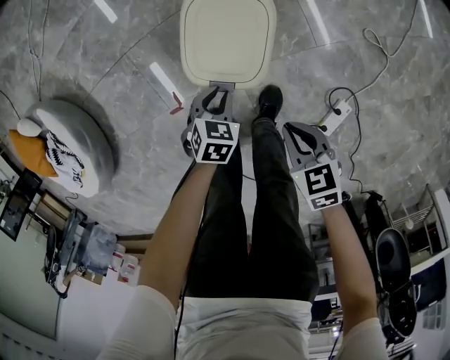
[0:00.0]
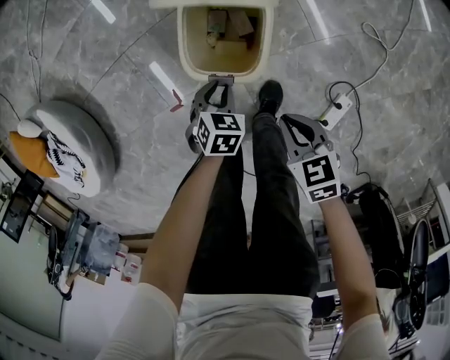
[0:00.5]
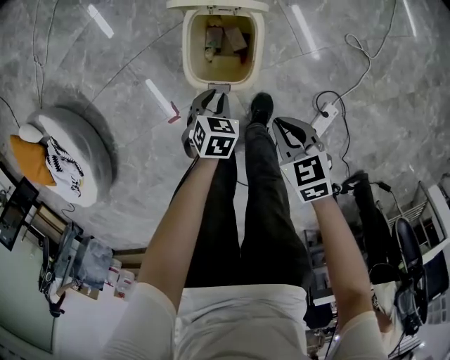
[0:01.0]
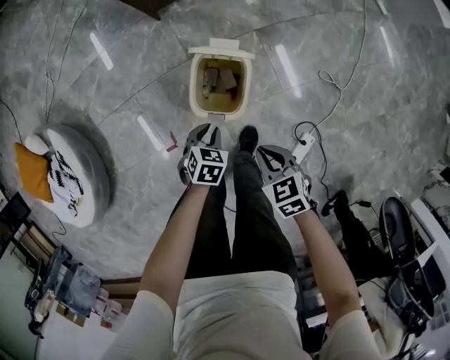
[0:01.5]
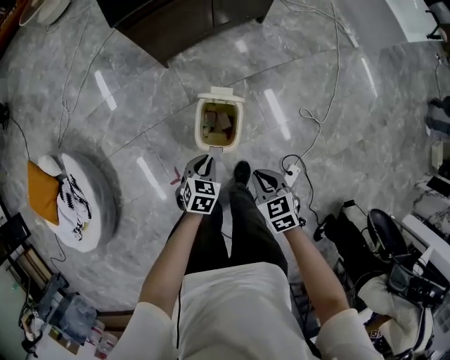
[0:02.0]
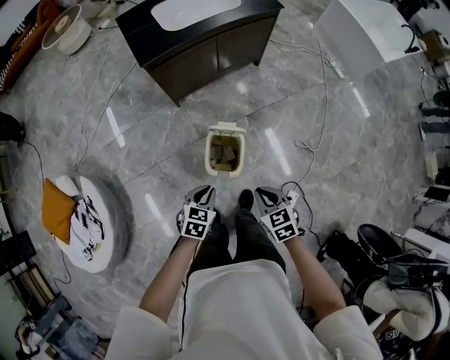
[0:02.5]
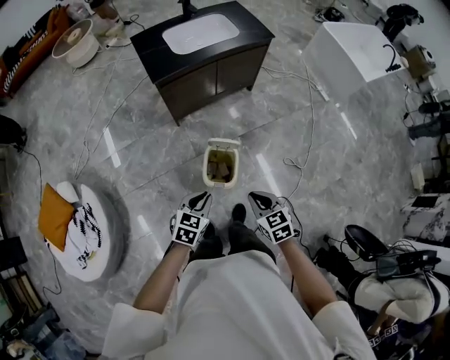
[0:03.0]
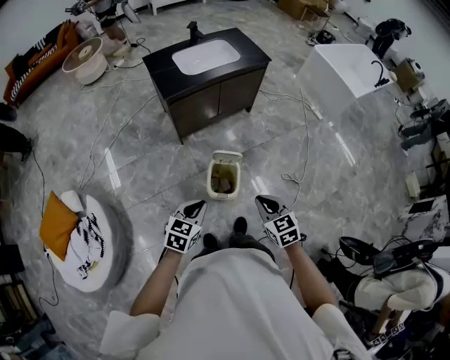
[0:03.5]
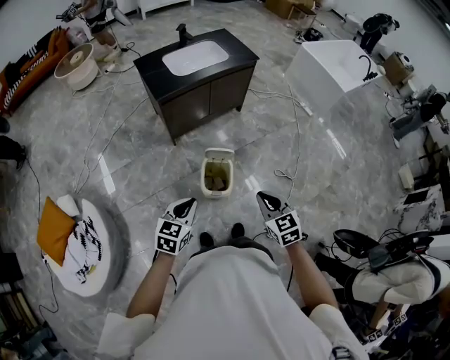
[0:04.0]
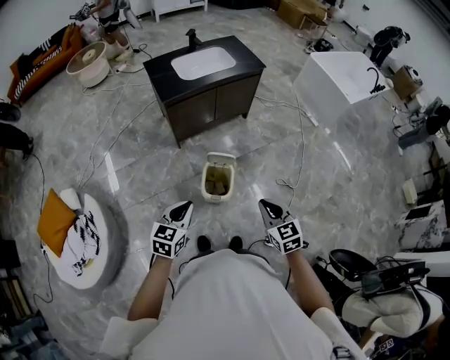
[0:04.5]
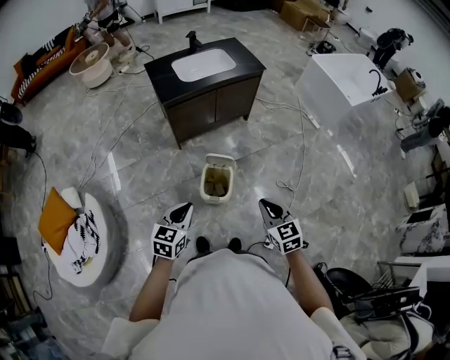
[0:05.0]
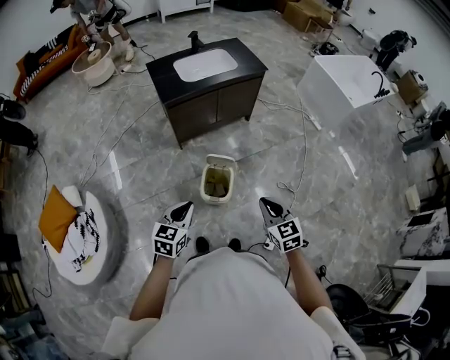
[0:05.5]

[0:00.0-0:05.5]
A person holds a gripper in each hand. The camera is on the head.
0:00.0 to 0:02.0: Both grippers move upward, approximately 25 cm.
0:02.0 to 0:03.5: Both grippers travel together upward, roughly 25 cm. The right gripper rotates about 20 degrees; the left gripper swivels about 20 degrees.
0:03.5 to 0:05.5: The left gripper ends up roughly 5 cm from where it was, while the right gripper heads to the right, covering about 5 cm.

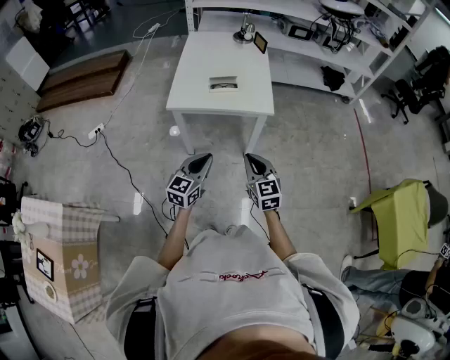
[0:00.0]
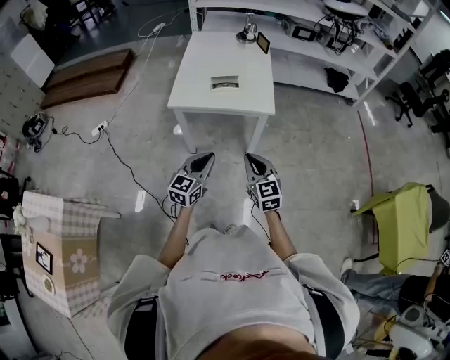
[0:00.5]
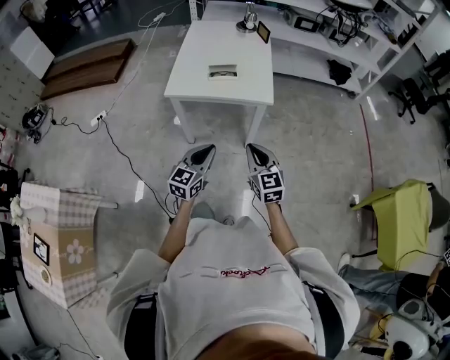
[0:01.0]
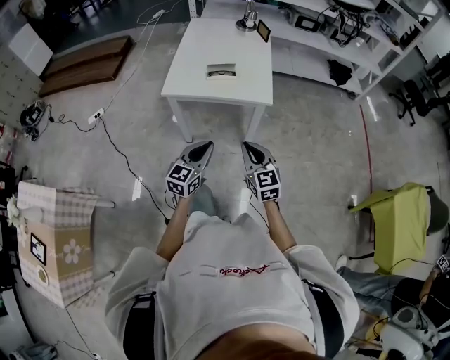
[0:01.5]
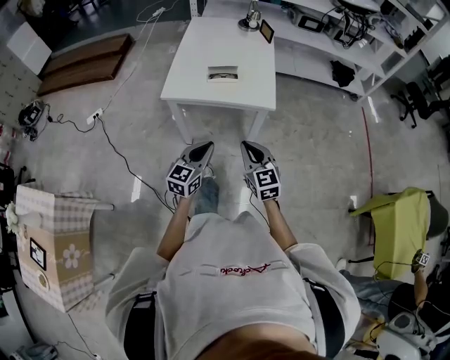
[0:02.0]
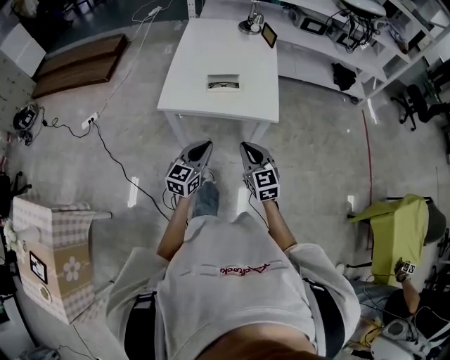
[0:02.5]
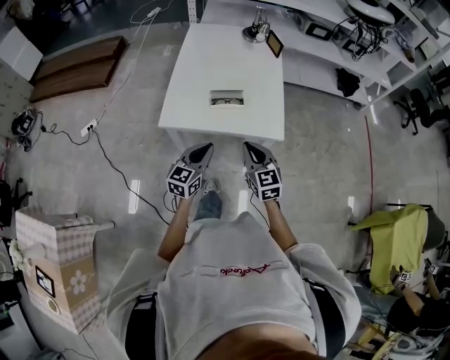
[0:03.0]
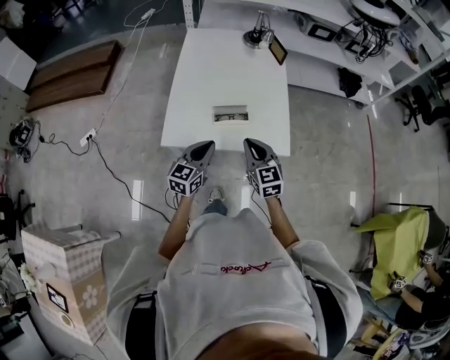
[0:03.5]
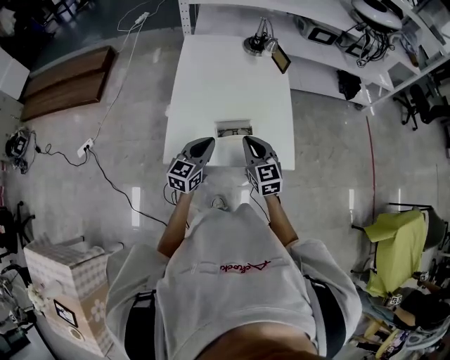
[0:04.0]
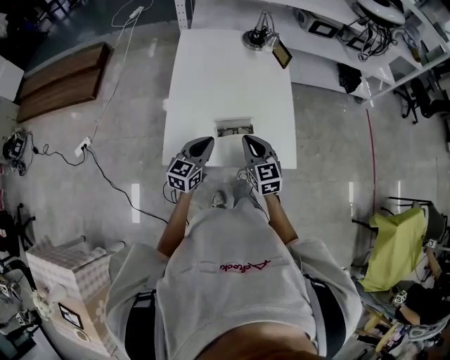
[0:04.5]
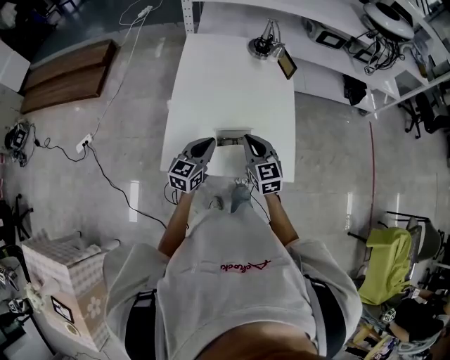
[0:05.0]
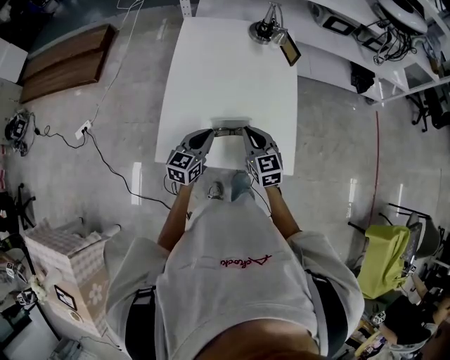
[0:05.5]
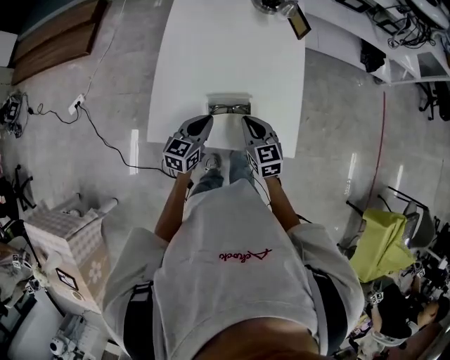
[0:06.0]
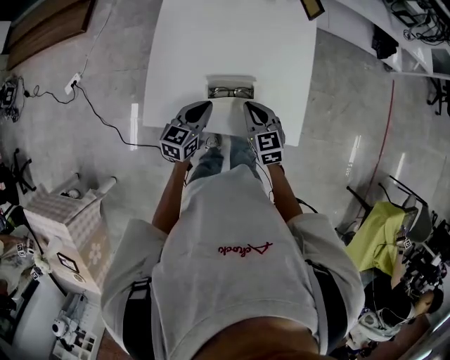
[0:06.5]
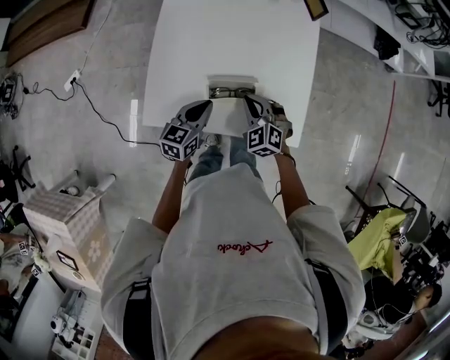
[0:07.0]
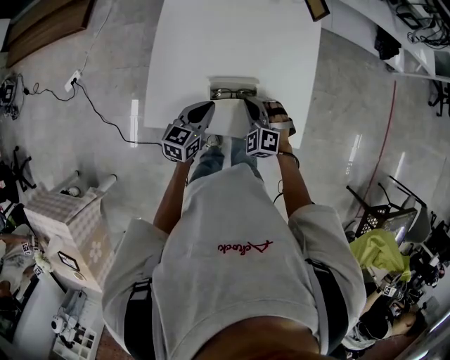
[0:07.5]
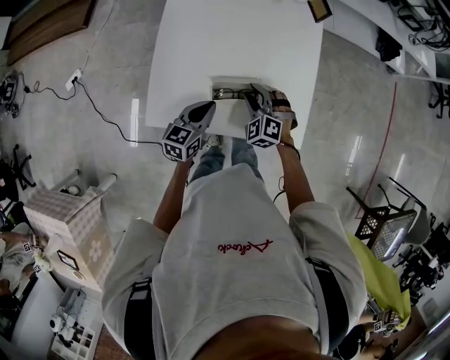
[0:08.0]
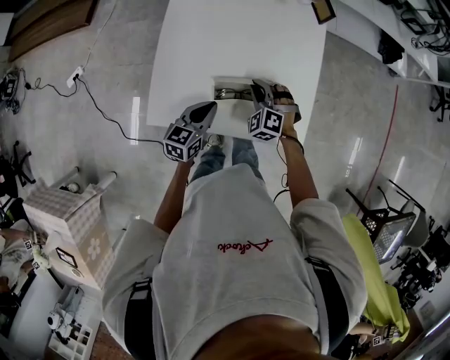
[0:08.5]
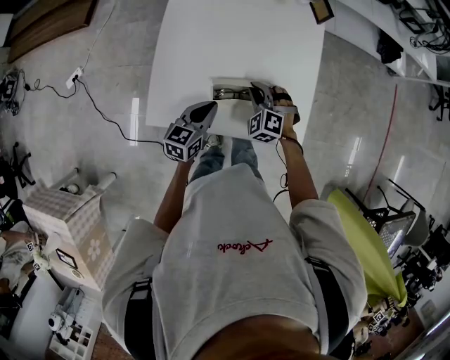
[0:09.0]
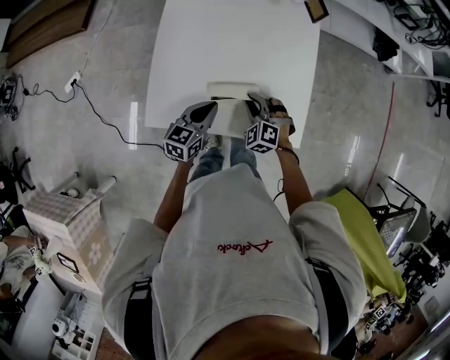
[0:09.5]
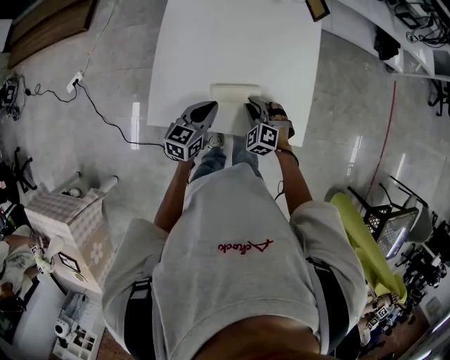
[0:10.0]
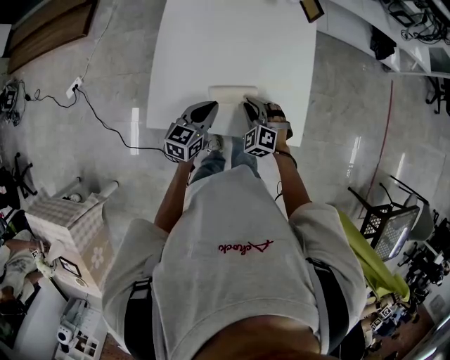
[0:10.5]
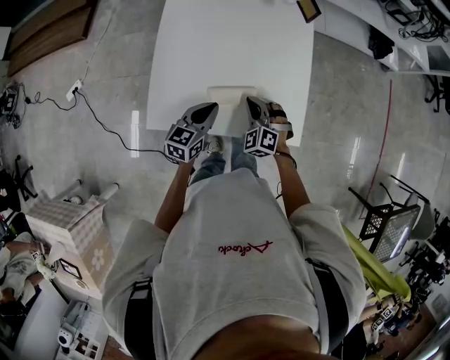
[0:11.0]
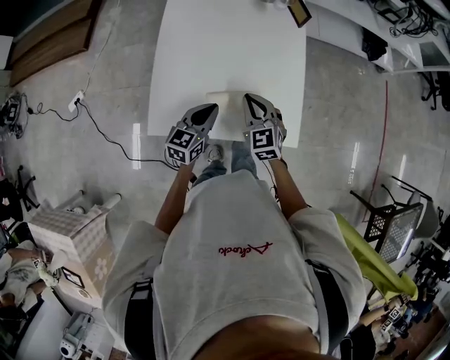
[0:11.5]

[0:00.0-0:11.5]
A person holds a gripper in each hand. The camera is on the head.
0:00.0 to 0:02.0: The grippers both shift forward by roughly 5 cm.
0:02.0 to 0:04.0: The grippers both shift forward by roughly 35 cm.
0:04.0 to 0:06.0: Both grippers move downward, approximately 10 cm.
0:06.0 to 0:07.5: The right gripper heads downward, covering about 5 cm, and rotates around the line of its fingers by roughly 60 degrees, counterclockwise from behind.
0:07.5 to 0:09.5: There are only small adjustments of the grippers.
0:09.5 to 0:11.5: The right gripper travels upward by about 10 cm, and turns by about 40 degrees.

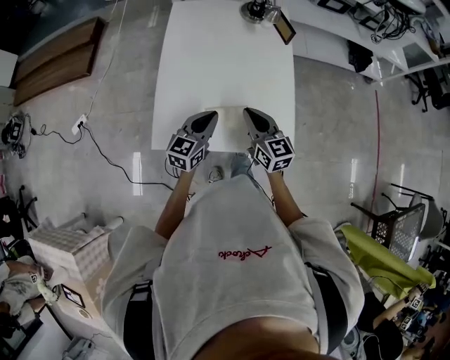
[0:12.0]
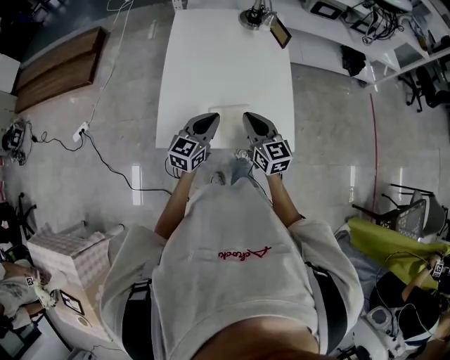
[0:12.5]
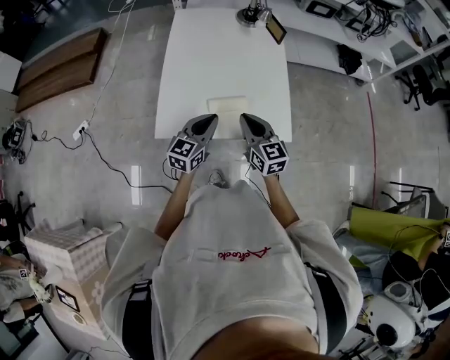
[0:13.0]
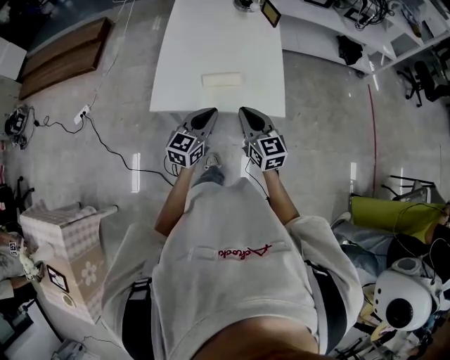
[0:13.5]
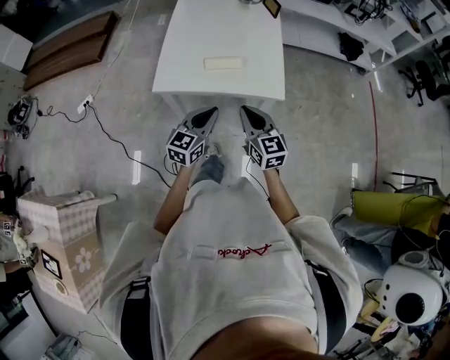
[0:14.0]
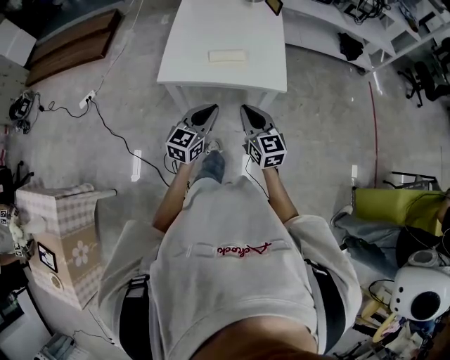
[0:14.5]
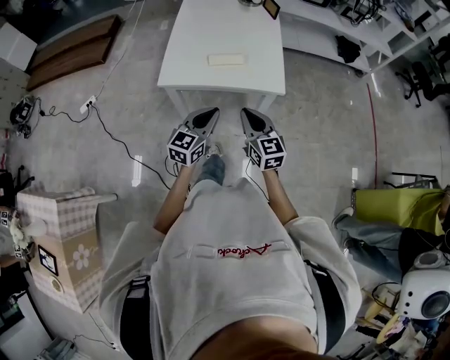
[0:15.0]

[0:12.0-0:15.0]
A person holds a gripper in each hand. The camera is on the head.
0:12.0 to 0:13.5: Both grippers travel together backward, some 15 cm.
0:13.5 to 0:15.0: Both grippers move backward, about 15 cm.

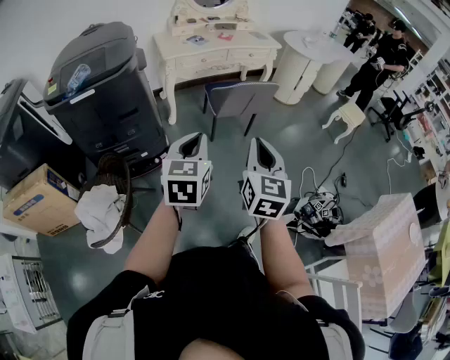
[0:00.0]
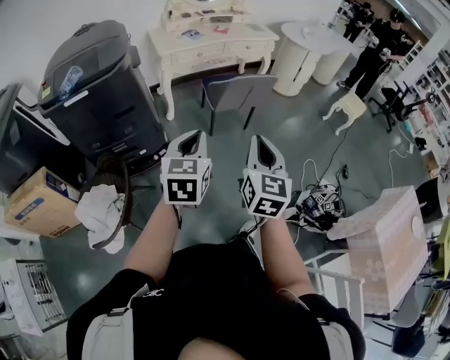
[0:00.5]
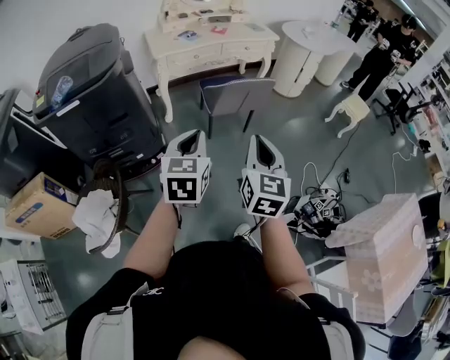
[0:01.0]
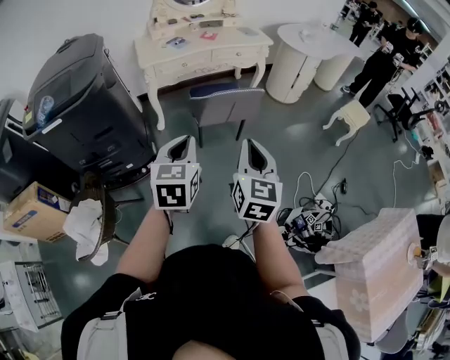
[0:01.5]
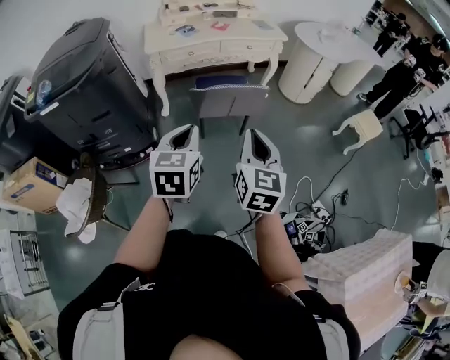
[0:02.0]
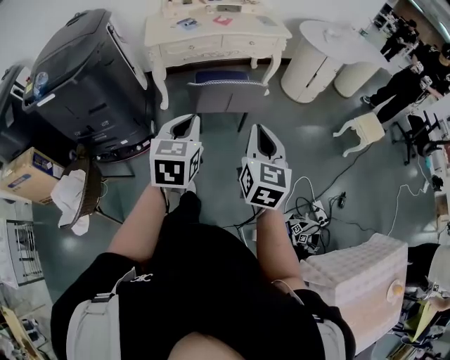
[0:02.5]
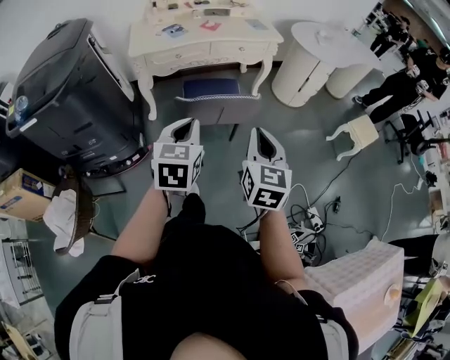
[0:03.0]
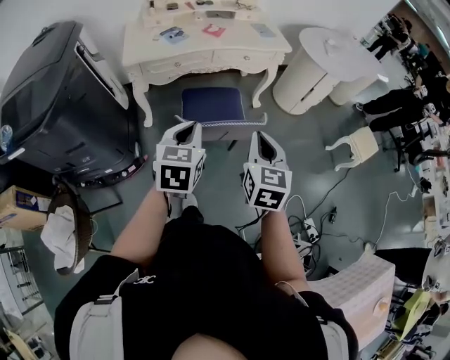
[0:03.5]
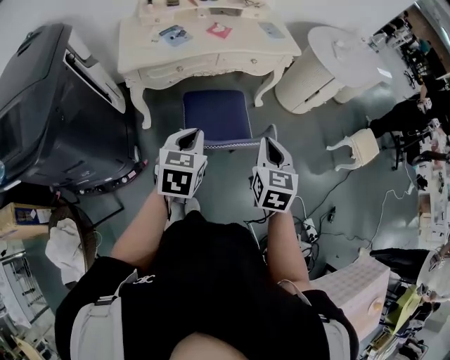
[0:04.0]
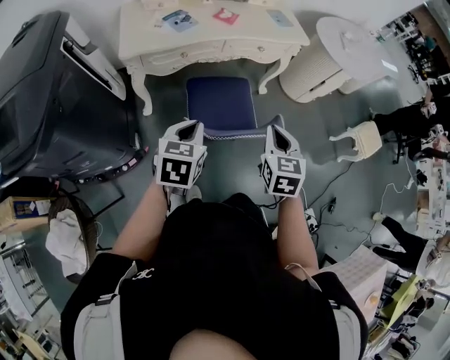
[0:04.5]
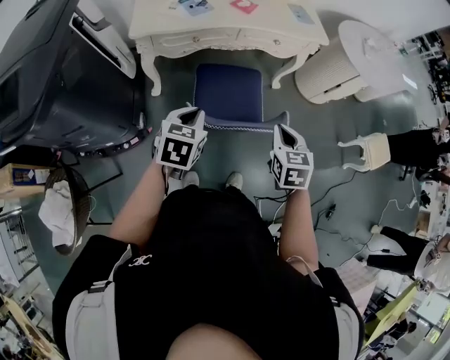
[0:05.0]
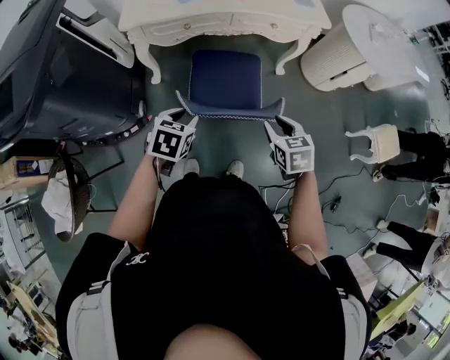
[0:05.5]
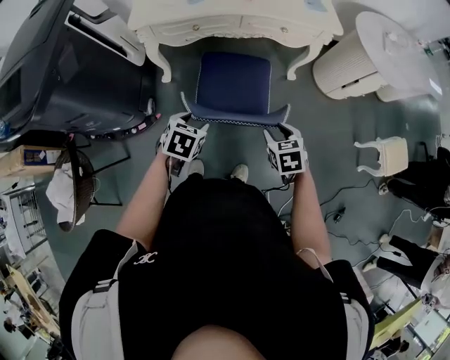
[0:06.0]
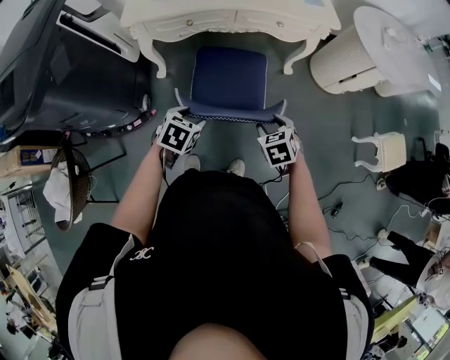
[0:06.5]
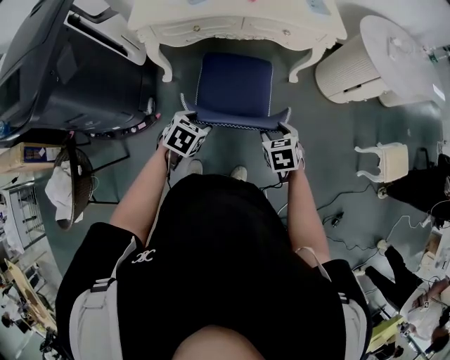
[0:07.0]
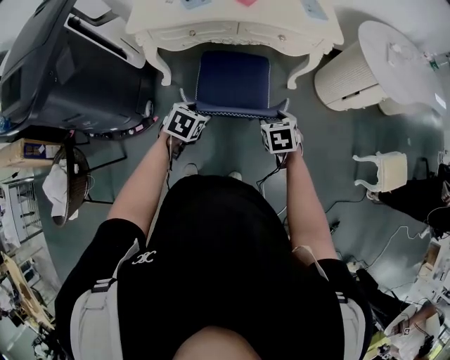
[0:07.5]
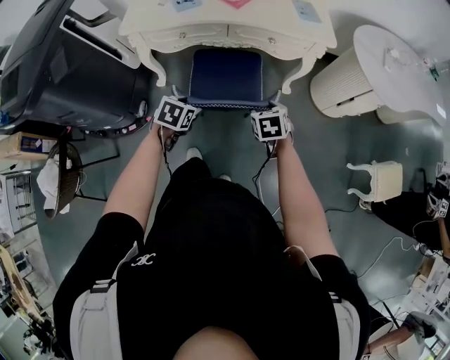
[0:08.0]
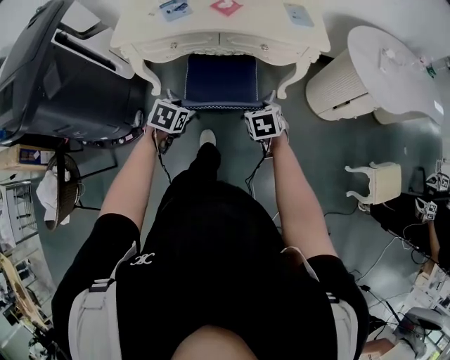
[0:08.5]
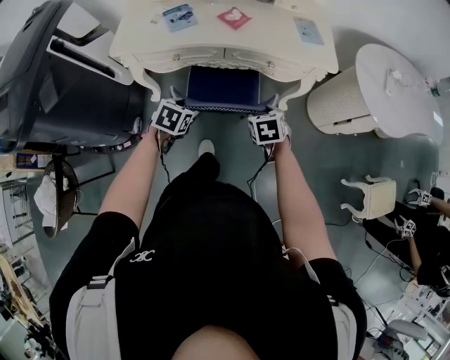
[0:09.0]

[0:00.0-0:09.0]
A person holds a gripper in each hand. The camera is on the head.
0:00.0 to 0:02.0: The grippers both shift forward and to the right by roughly 25 cm.
0:02.0 to 0:04.5: Both grippers travel together forward, about 35 cm. The right gripper turns by approximately 20 degrees.
0:04.5 to 0:07.0: The two grippers go about 20 cm downward and to the right. The left gripper swivels approximately 20 degrees, and opens. Meanwhile the right gripper rotates roughly 40 degrees, and opens up.
0:07.0 to 0:09.0: The two grippers go roughly 20 cm forward.
